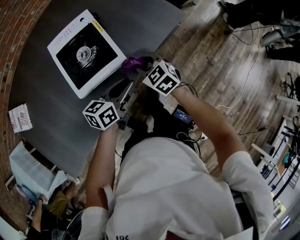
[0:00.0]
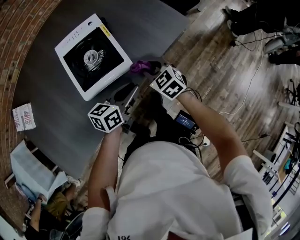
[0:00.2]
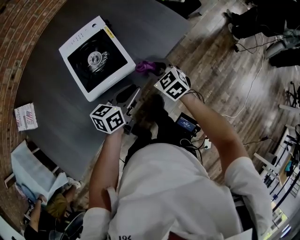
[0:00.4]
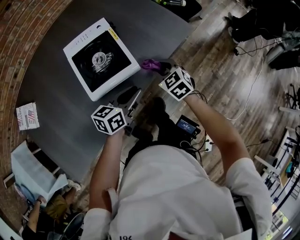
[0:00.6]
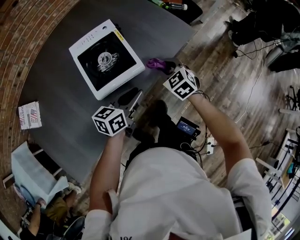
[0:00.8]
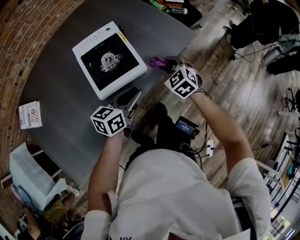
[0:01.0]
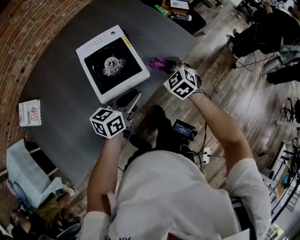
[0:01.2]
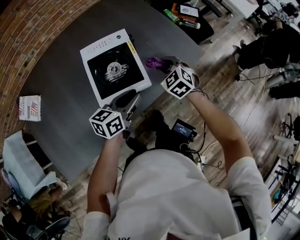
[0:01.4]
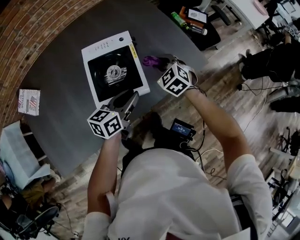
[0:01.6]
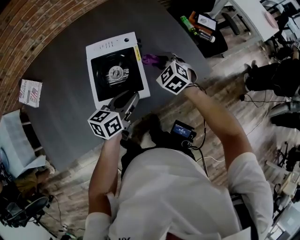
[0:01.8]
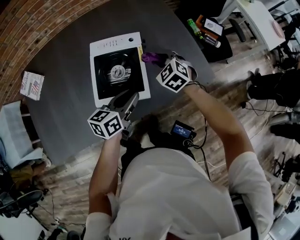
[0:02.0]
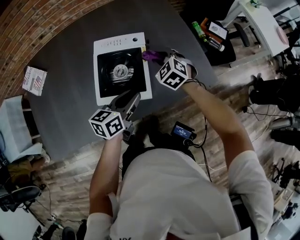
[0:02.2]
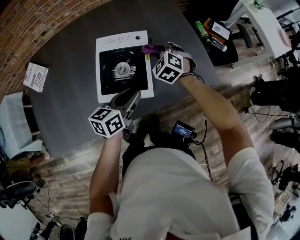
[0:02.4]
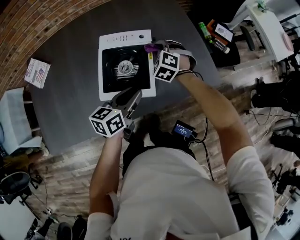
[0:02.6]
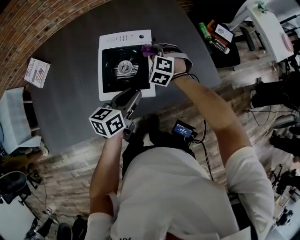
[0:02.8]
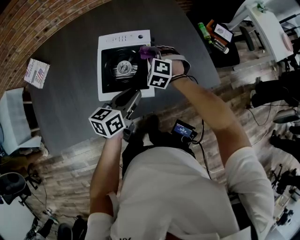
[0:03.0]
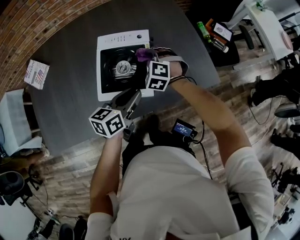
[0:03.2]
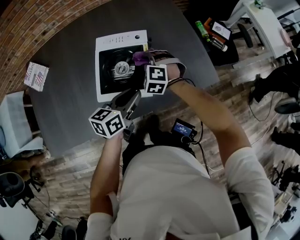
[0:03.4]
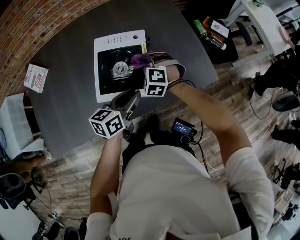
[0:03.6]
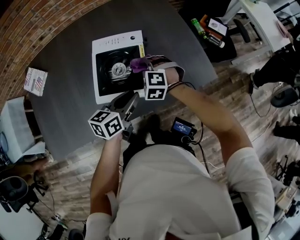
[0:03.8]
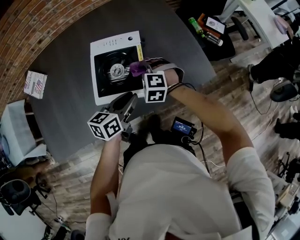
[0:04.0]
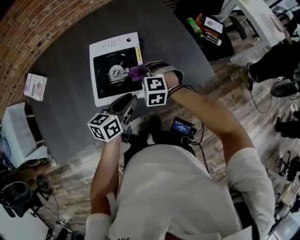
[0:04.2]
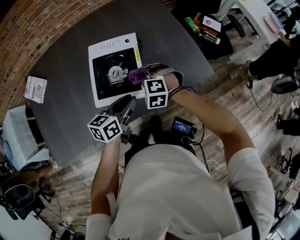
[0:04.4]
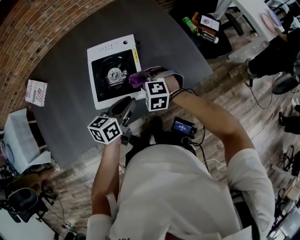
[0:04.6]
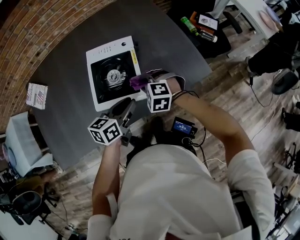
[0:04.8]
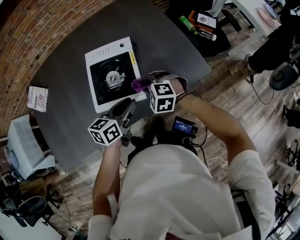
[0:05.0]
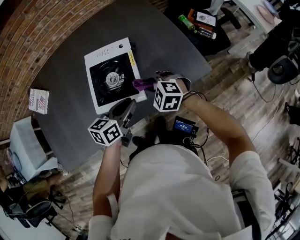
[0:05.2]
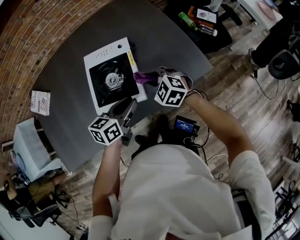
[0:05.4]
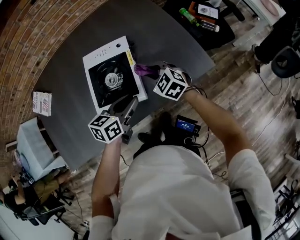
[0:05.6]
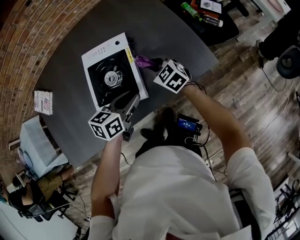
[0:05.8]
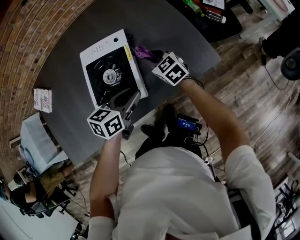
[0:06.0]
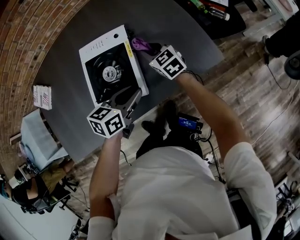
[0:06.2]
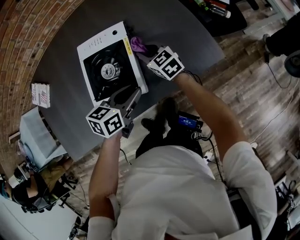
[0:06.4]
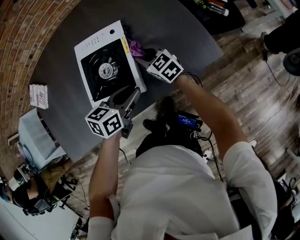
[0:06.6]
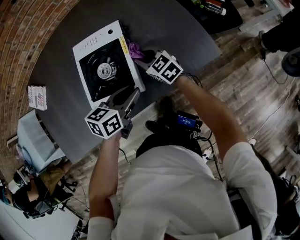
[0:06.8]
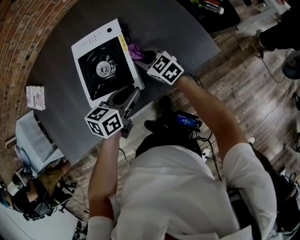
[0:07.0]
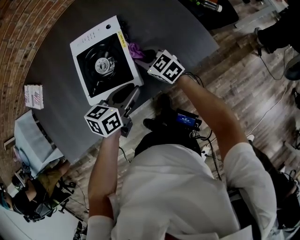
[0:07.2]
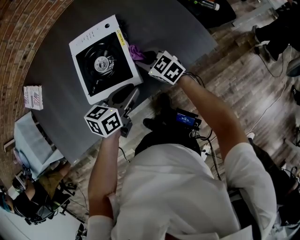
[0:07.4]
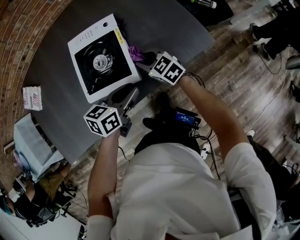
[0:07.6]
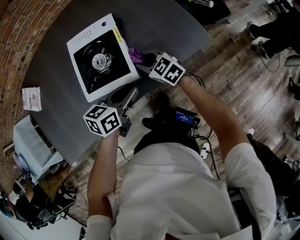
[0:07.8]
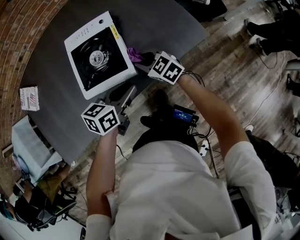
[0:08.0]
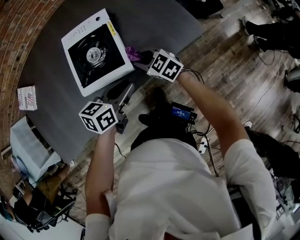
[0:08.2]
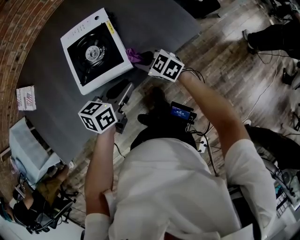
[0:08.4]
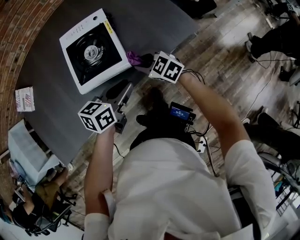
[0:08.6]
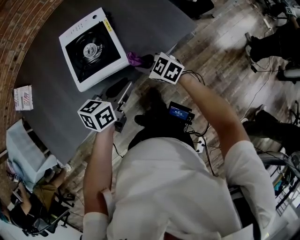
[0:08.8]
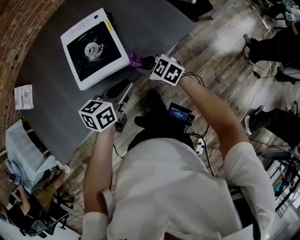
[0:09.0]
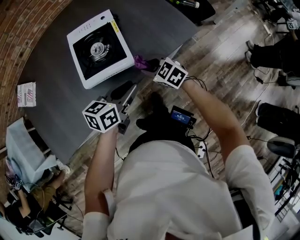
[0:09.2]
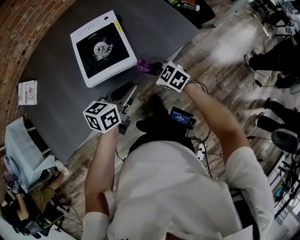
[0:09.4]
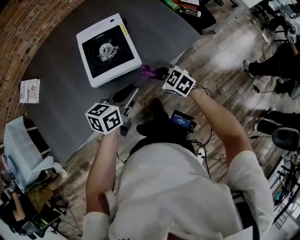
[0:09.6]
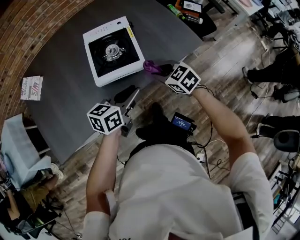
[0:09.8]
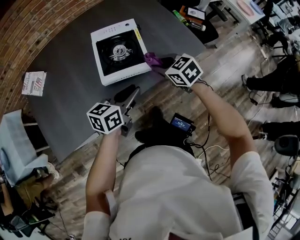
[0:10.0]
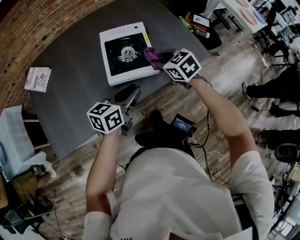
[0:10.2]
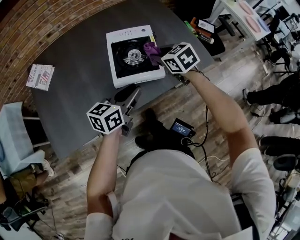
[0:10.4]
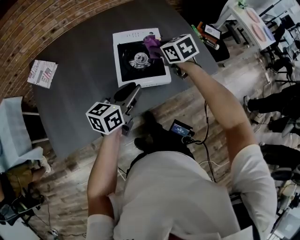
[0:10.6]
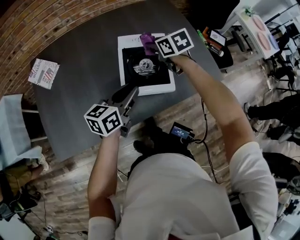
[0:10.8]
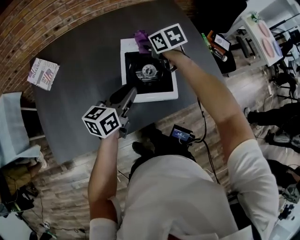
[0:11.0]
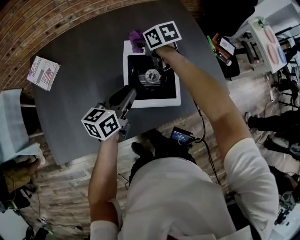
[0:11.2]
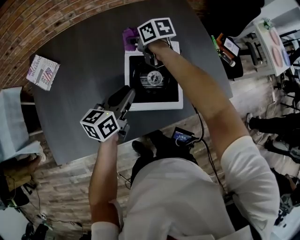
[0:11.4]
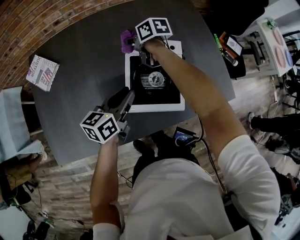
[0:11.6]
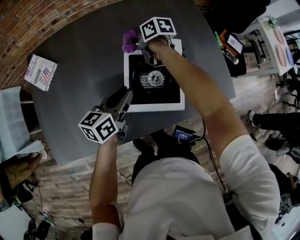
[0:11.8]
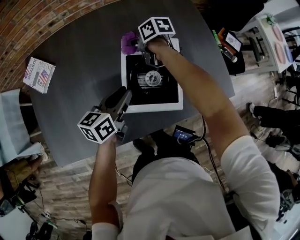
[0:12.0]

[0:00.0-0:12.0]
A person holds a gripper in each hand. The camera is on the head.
0:00.0 to 0:01.6: The left gripper is displaced to the left, forward and upward by approximately 10 cm; the right gripper travels forward and upward by approximately 15 cm, and turns by roughly 20 degrees.
0:01.6 to 0:03.0: The right gripper is displaced to the left and forward by roughly 10 cm, and changes its angle by roughly 30 degrees.
0:03.0 to 0:04.4: The right gripper moves backward, approximately 10 cm.
0:04.4 to 0:06.0: The left gripper moves approximately 5 cm; the right gripper is displaced forward and to the right by roughly 10 cm, and rotates around the line of its fingers by approximately 50 degrees, clockwise from behind.
0:06.0 to 0:07.6: The left gripper shifts by roughly 5 cm. The right gripper travels backward by roughly 10 cm.
0:07.6 to 0:09.0: The left gripper is displaced backward by approximately 5 cm. Meanwhile the right gripper moves backward, roughly 10 cm.
0:09.0 to 0:10.4: The right gripper is displaced upward, to the left and forward by some 20 cm, while the left gripper is displaced to the left and upward by roughly 15 cm.
0:10.4 to 0:12.0: The left gripper travels forward and to the left by about 15 cm. The right gripper moves forward and to the left, roughly 30 cm, and swivels approximately 40 degrees.

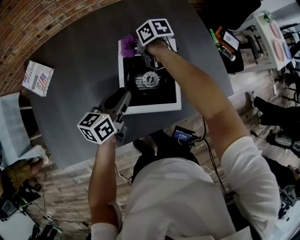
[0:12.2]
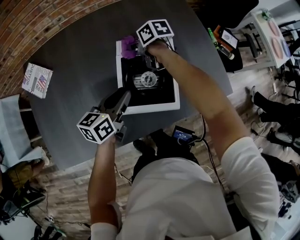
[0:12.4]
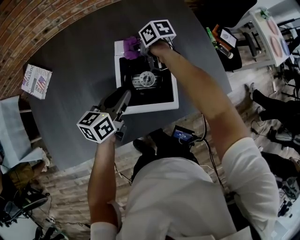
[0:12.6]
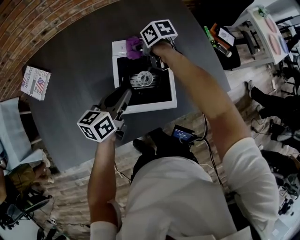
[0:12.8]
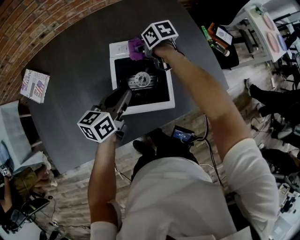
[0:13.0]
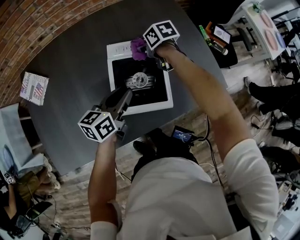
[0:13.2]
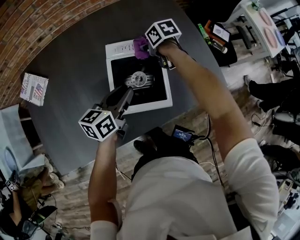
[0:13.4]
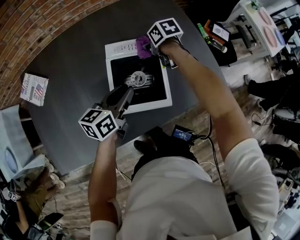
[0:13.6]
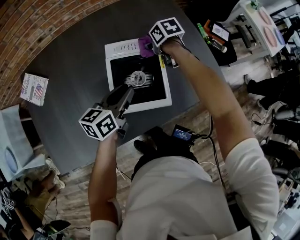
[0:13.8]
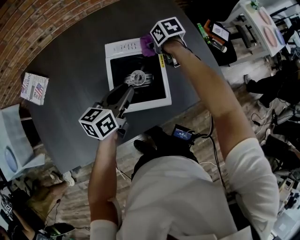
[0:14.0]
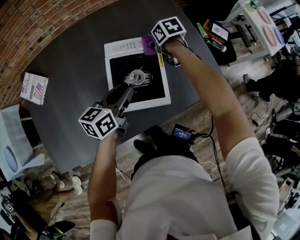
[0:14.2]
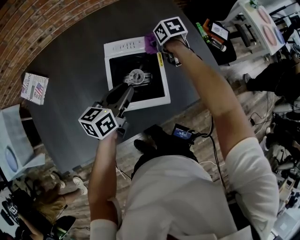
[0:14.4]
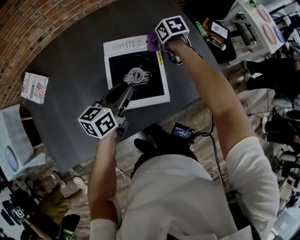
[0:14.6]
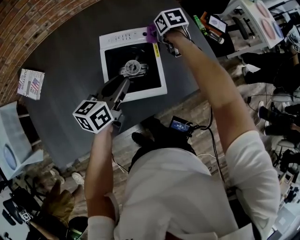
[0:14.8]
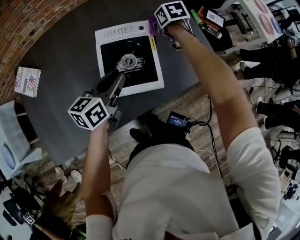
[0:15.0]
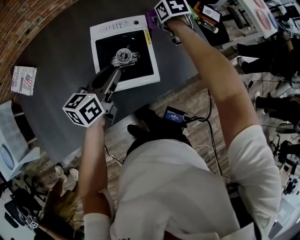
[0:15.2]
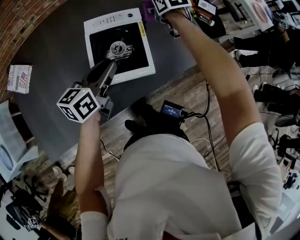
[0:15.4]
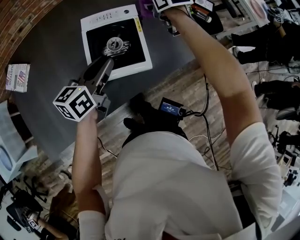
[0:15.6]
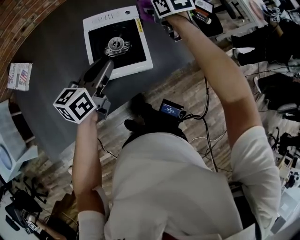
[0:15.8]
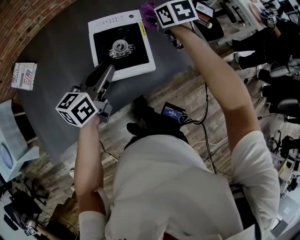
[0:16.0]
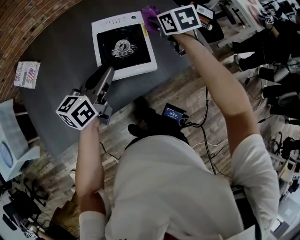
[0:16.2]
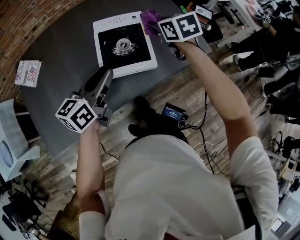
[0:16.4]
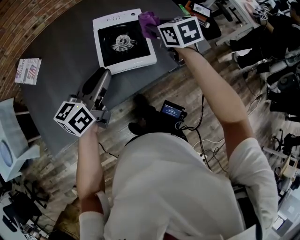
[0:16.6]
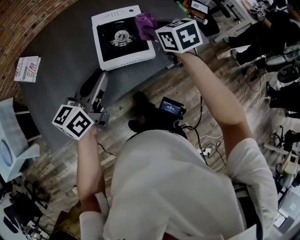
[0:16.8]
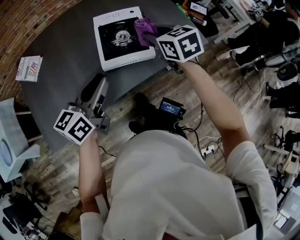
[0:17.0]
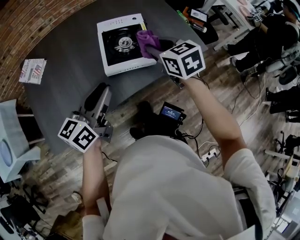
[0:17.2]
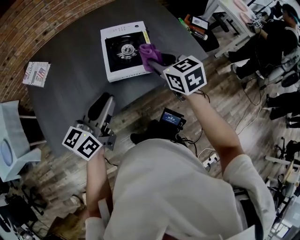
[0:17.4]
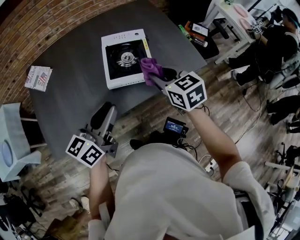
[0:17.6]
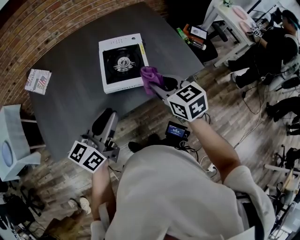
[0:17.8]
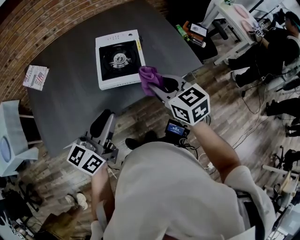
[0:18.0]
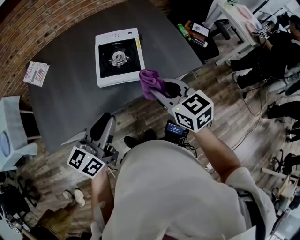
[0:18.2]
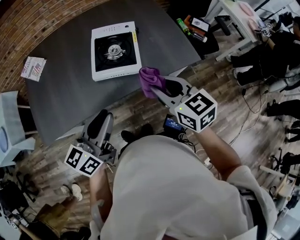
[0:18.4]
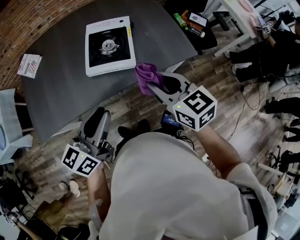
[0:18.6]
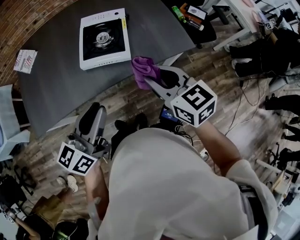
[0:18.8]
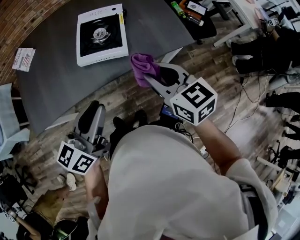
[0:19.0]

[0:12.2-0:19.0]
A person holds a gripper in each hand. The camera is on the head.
0:12.2 to 0:13.6: The right gripper goes about 15 cm to the right; the left gripper moves to the right, about 5 cm.
0:13.6 to 0:15.0: The right gripper travels to the right by roughly 10 cm.
0:15.0 to 0:16.2: The right gripper heads backward and upward, covering approximately 15 cm. The left gripper shifts roughly 10 cm backward and upward.
0:16.2 to 0:17.6: Both grippers travel together backward, approximately 20 cm.
0:17.6 to 0:19.0: The left gripper goes roughly 15 cm to the right and backward. Meanwhile the right gripper is displaced backward and to the right by about 15 cm.

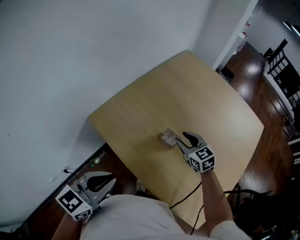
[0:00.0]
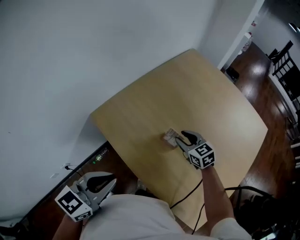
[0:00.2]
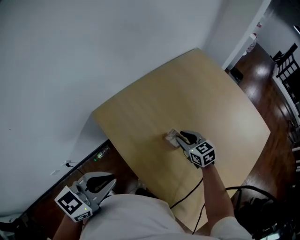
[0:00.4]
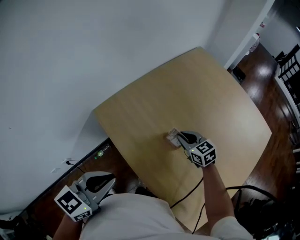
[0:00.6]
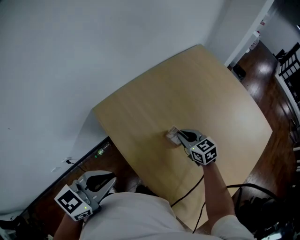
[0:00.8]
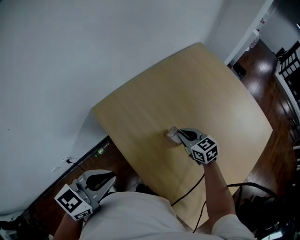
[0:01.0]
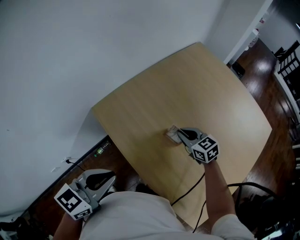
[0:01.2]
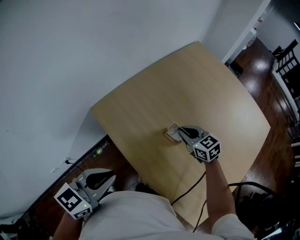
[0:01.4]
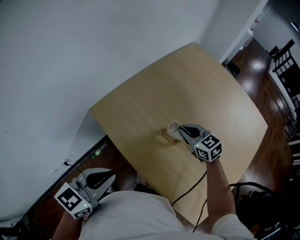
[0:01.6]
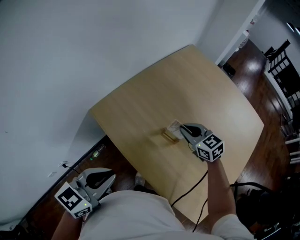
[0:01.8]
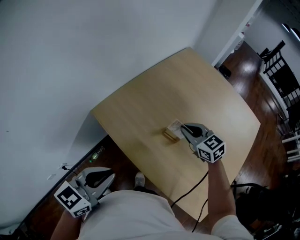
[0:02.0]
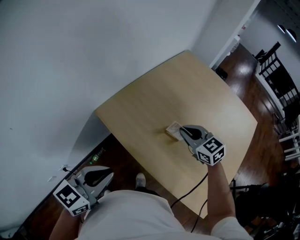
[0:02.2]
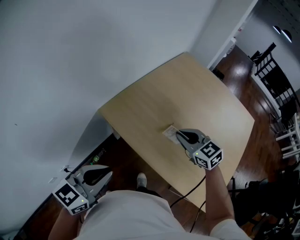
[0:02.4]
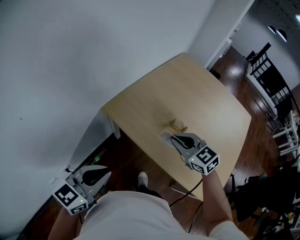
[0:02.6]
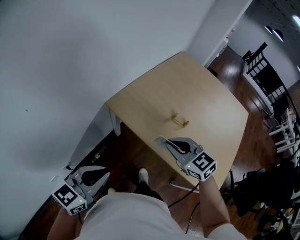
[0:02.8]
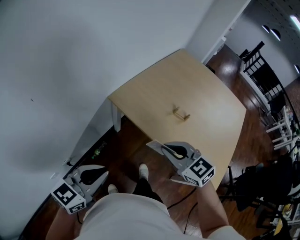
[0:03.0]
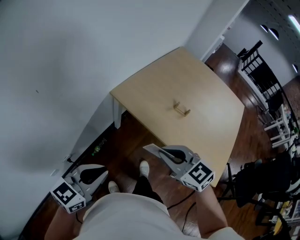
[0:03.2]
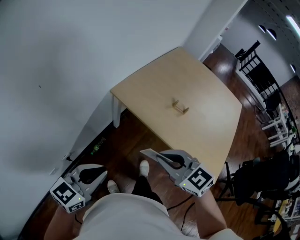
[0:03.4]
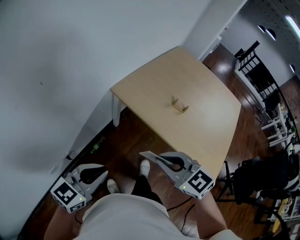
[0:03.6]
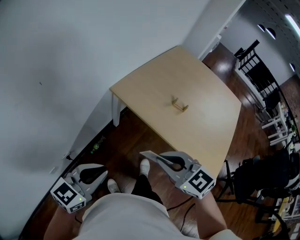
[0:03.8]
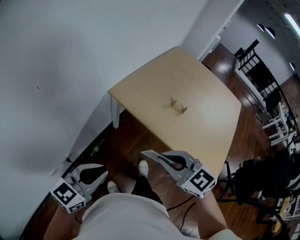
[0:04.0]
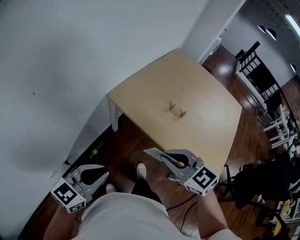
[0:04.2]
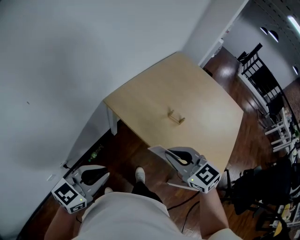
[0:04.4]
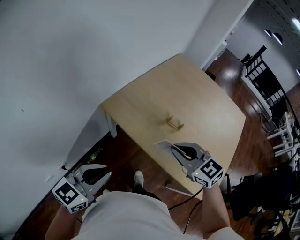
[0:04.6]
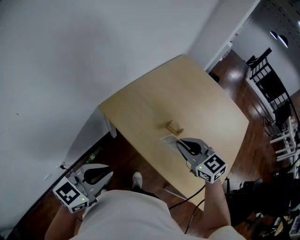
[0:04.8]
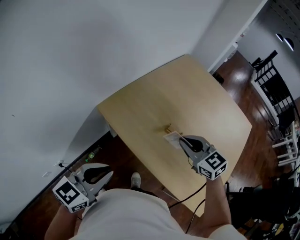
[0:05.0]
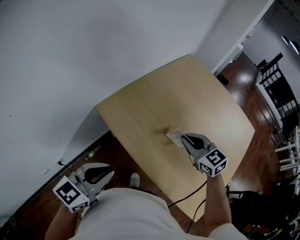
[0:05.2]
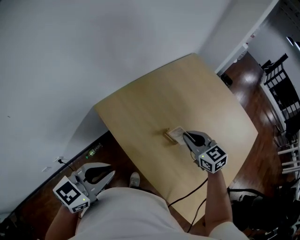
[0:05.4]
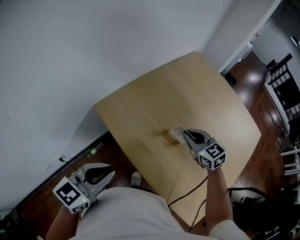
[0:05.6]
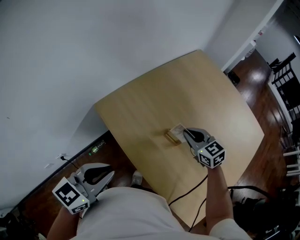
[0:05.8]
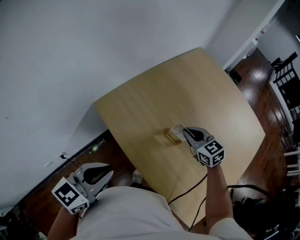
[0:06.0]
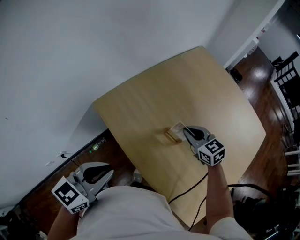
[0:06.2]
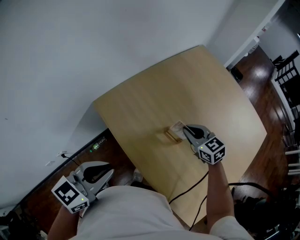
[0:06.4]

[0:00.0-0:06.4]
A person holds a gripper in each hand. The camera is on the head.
0:00.0 to 0:01.6: The right gripper closes.
0:01.6 to 0:03.2: The left gripper travels to the left and backward by roughly 30 cm. The right gripper heads backward, to the left and upward, covering approximately 50 cm.
0:03.2 to 0:04.8: The right gripper goes roughly 25 cm forward and to the right, while the left gripper heads to the right and forward, covering some 15 cm.
0:04.8 to 0:06.4: The left gripper goes some 15 cm to the right and forward, while the right gripper shifts about 25 cm forward, downward and to the right.
